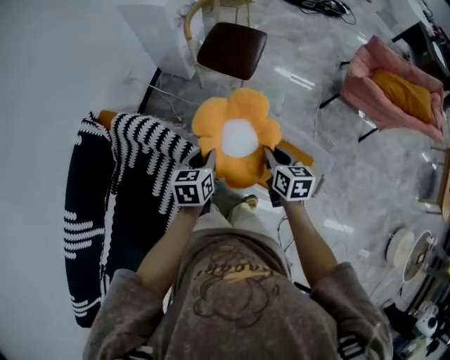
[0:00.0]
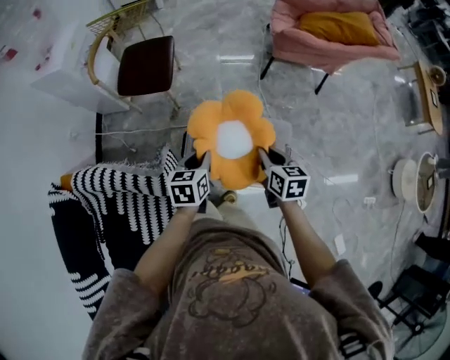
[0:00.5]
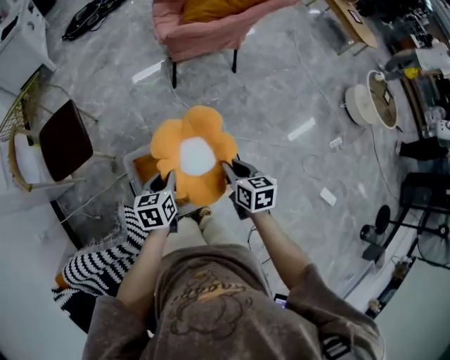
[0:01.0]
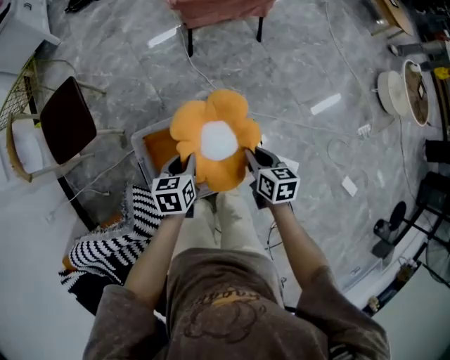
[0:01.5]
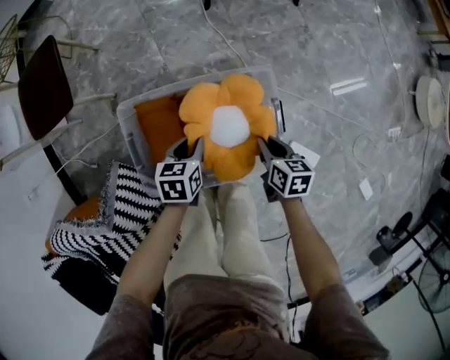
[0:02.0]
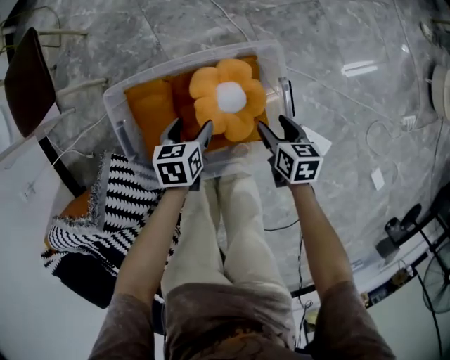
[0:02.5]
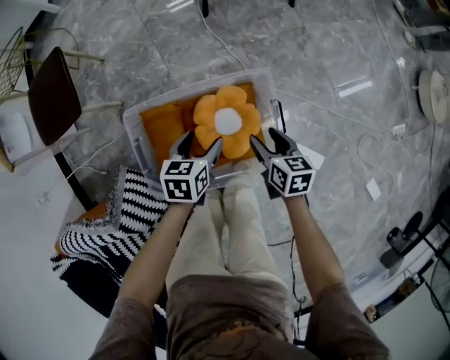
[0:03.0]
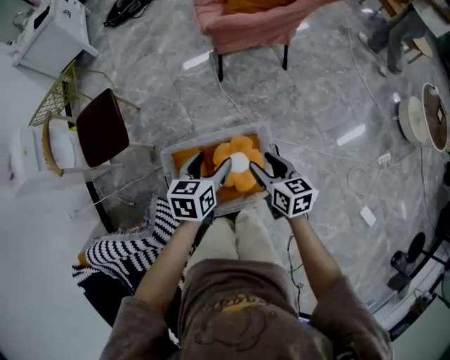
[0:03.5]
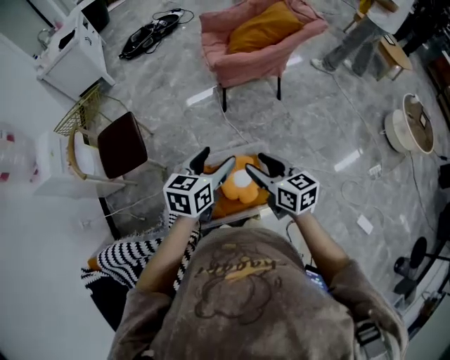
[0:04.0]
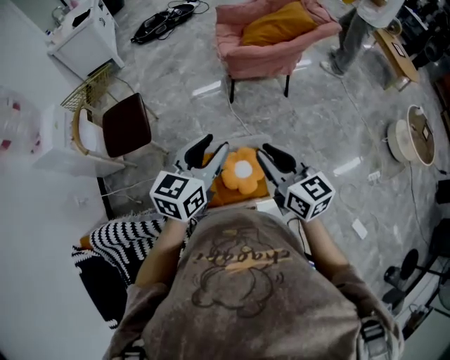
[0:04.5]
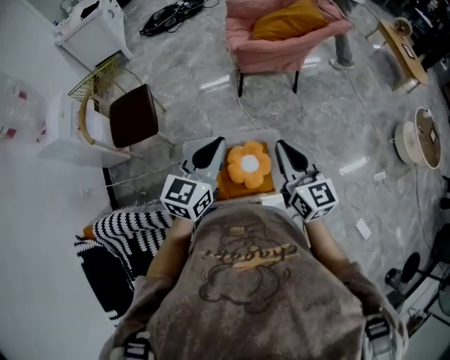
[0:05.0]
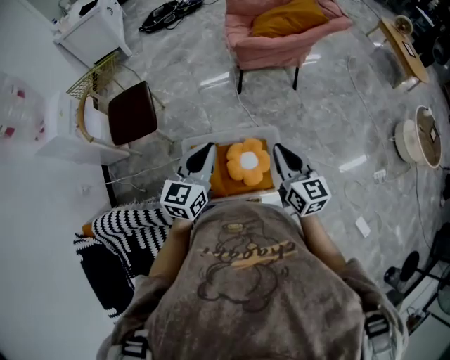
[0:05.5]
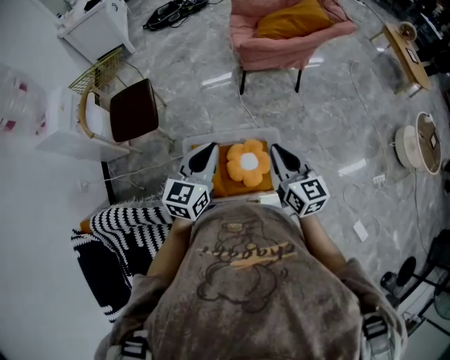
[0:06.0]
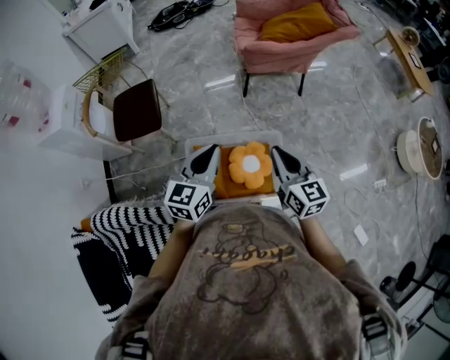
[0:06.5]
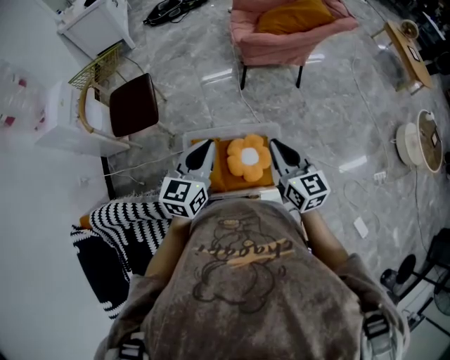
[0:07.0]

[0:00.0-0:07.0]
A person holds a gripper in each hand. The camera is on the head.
0:00.0 to 0:02.0: The two grippers travel together, about 50 cm. The left gripper swivels roughly 50 degrees. The right gripper turns by about 40 degrees.
0:02.0 to 0:03.5: Both grippers travel together upward, some 30 cm. The right gripper rotates some 20 degrees, and opens up, while the left gripper opens its fingers.
0:03.5 to 0:05.0: The right gripper shifts approximately 30 cm upward, rotates roughly 30 degrees, and closes. The left gripper travels upward and backward by approximately 30 cm, changes its angle by about 30 degrees, and closes up.
0:05.0 to 0:07.0: The grippers both shift downward by some 5 cm.

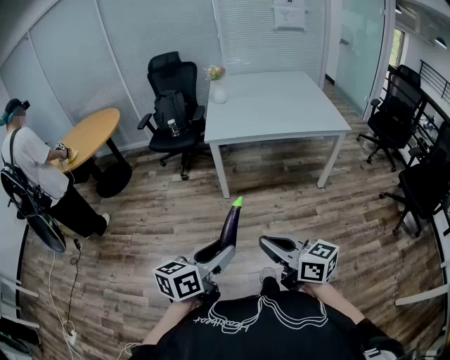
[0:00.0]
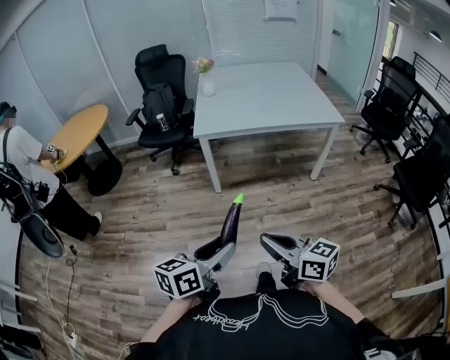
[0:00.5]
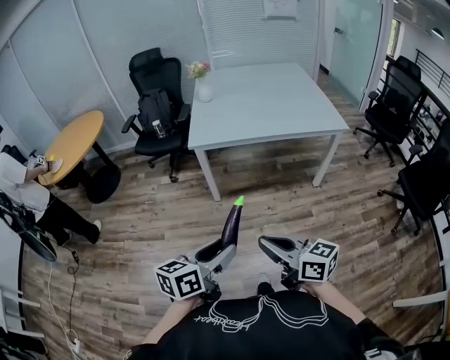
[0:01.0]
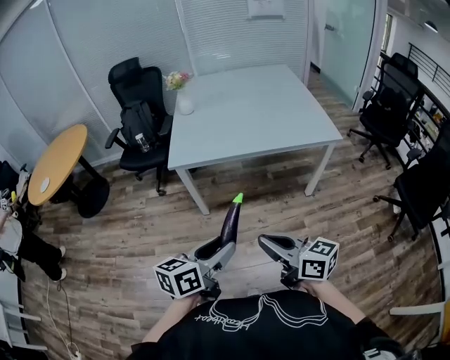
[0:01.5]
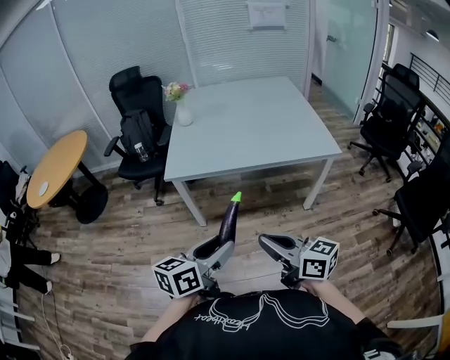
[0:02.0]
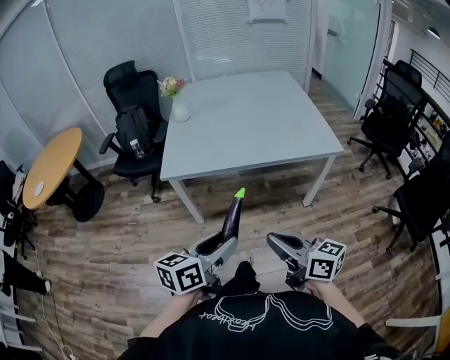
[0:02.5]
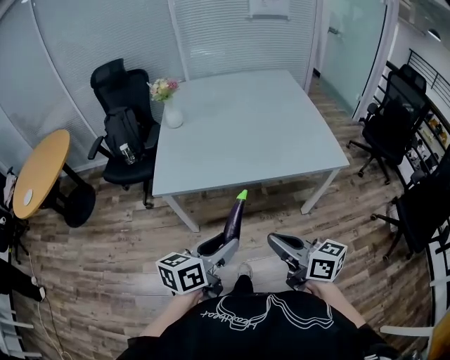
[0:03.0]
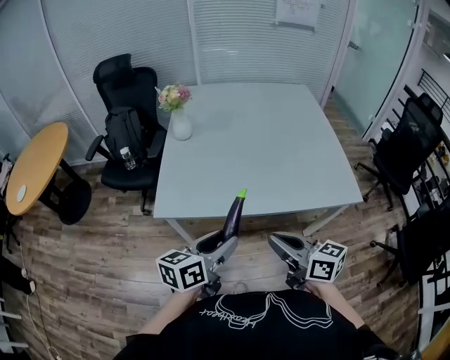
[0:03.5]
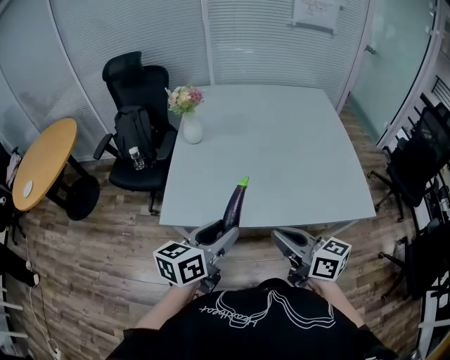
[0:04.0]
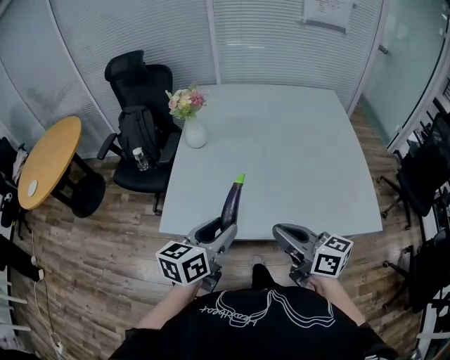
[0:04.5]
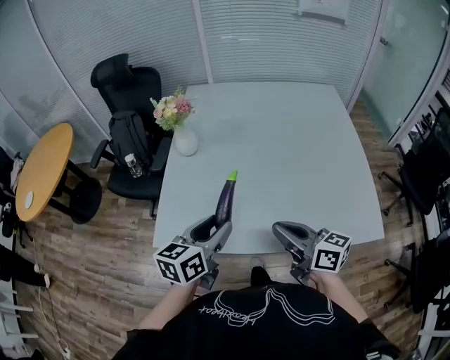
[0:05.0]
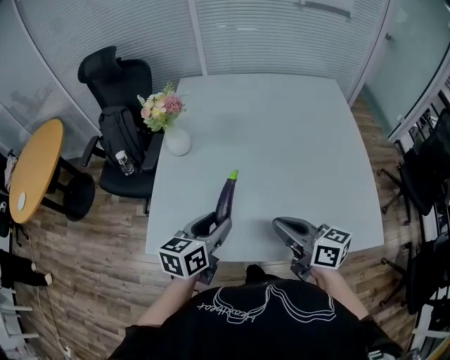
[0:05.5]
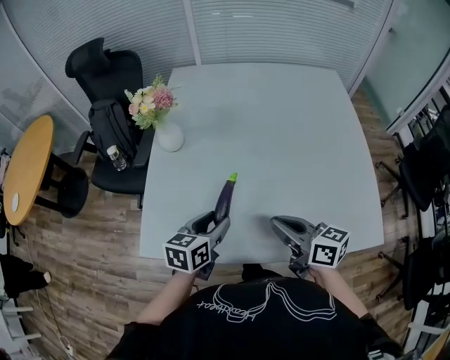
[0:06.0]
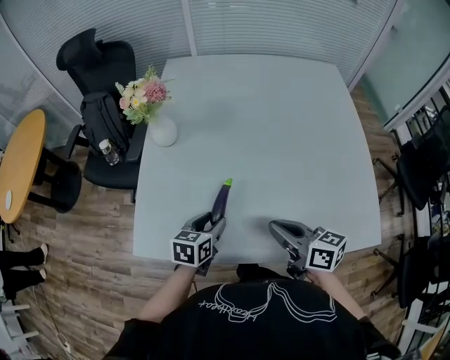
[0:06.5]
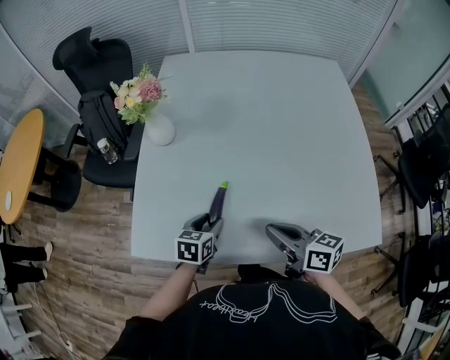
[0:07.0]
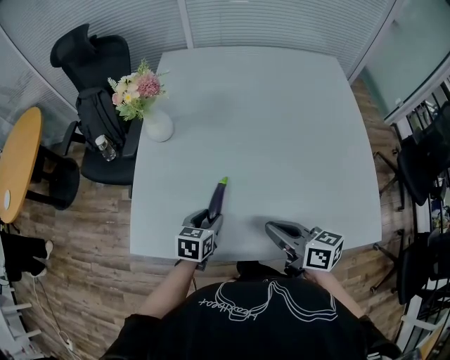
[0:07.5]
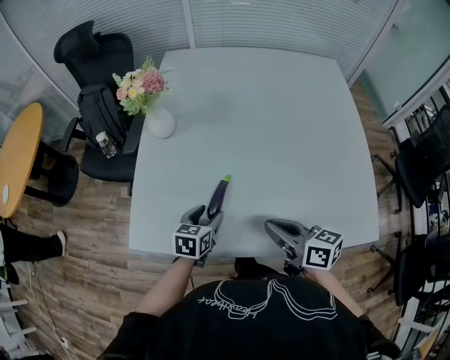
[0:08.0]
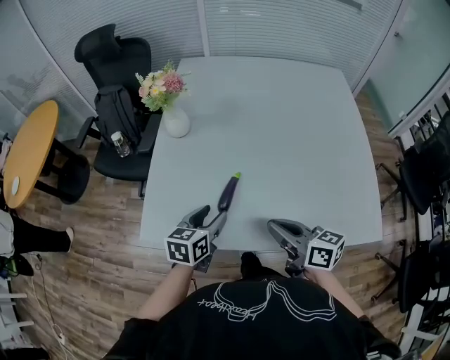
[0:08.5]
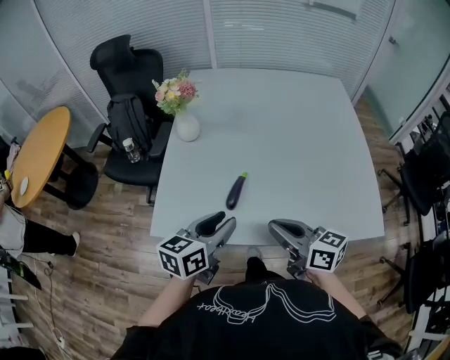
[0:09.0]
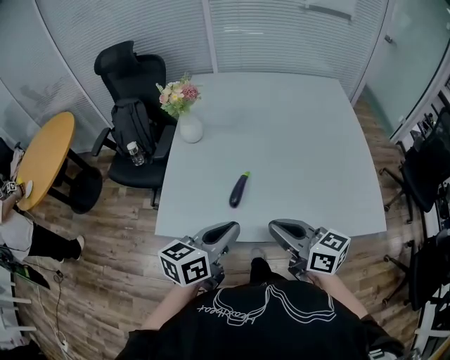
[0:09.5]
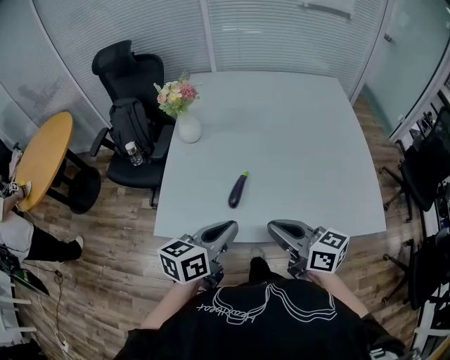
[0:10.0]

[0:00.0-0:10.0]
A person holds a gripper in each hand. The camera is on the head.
0:00.0 to 0:02.0: Both grippers move forward and to the right, about 30 cm.
0:02.0 to 0:04.0: The grippers both shift forward by roughly 35 cm.
0:04.0 to 0:06.0: The right gripper moves forward, approximately 20 cm; the left gripper shifts roughly 25 cm forward and downward.
0:06.0 to 0:08.0: The left gripper heads downward, covering some 10 cm.
0:08.0 to 0:10.0: The right gripper heads backward, upward and to the left, covering approximately 15 cm. The left gripper goes some 25 cm upward and backward, rotates some 30 degrees, and closes up.

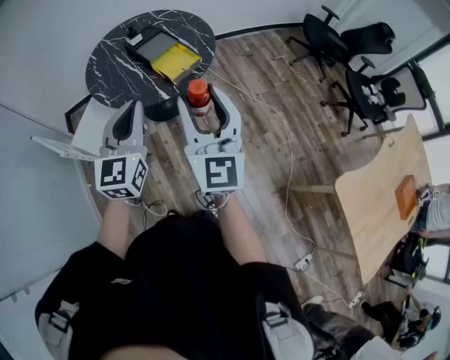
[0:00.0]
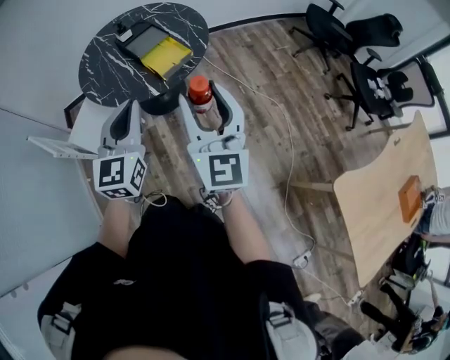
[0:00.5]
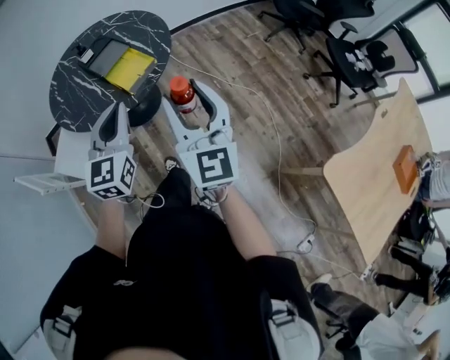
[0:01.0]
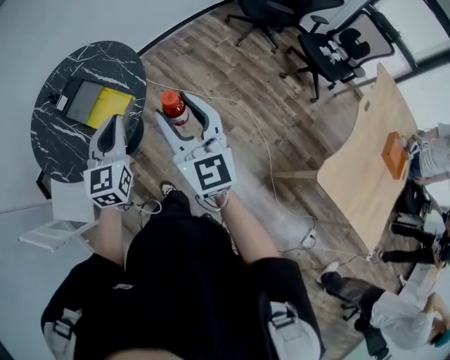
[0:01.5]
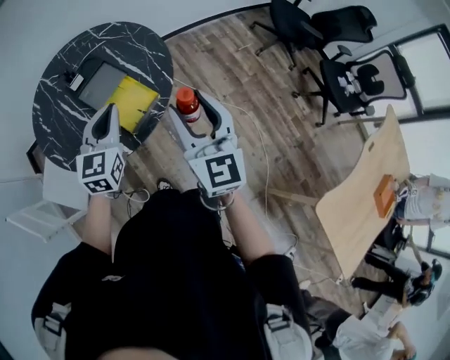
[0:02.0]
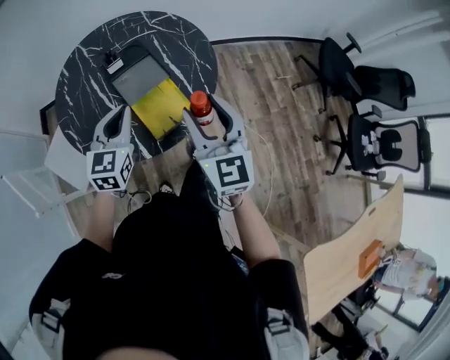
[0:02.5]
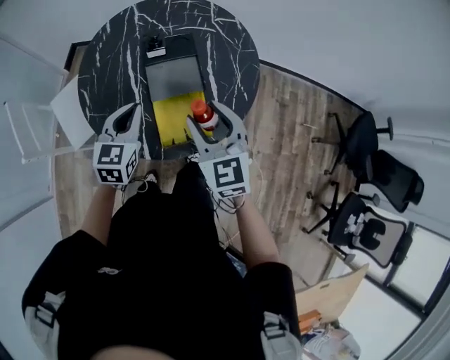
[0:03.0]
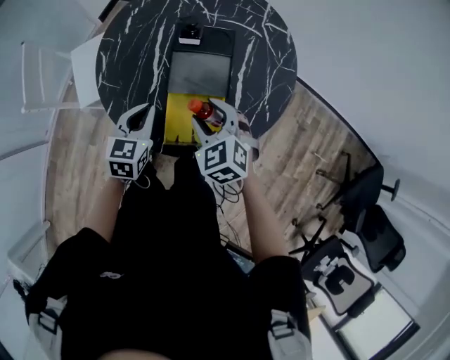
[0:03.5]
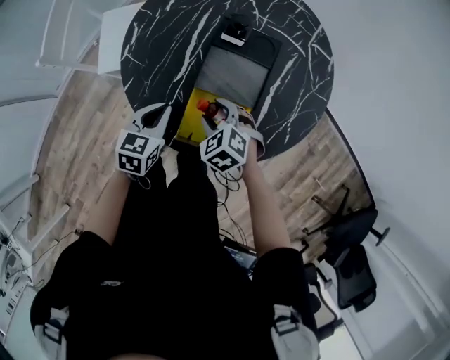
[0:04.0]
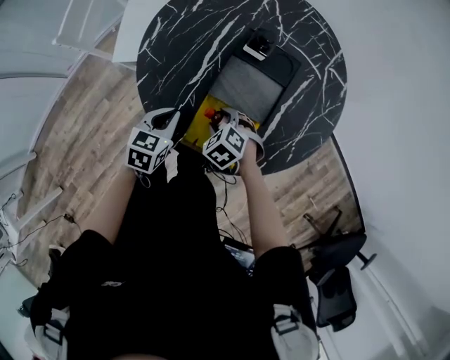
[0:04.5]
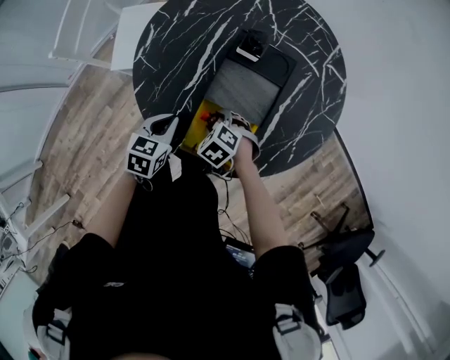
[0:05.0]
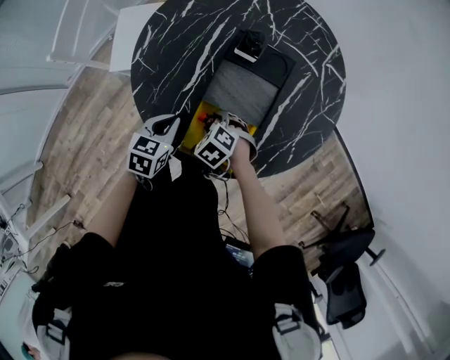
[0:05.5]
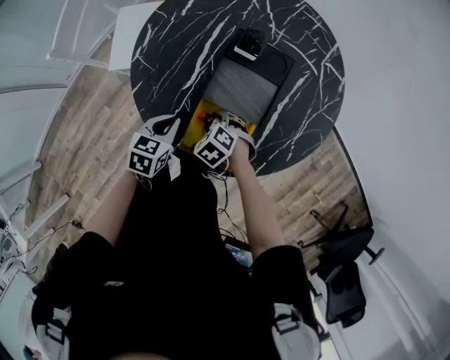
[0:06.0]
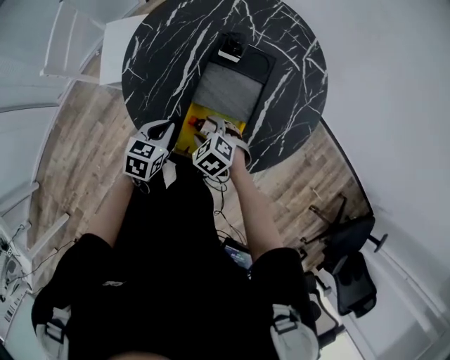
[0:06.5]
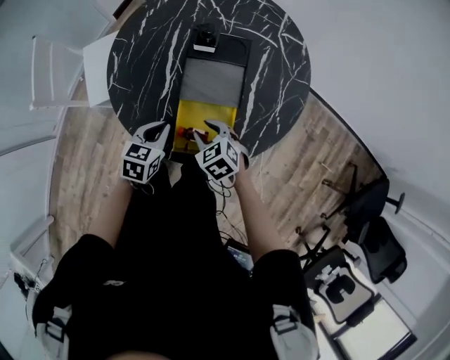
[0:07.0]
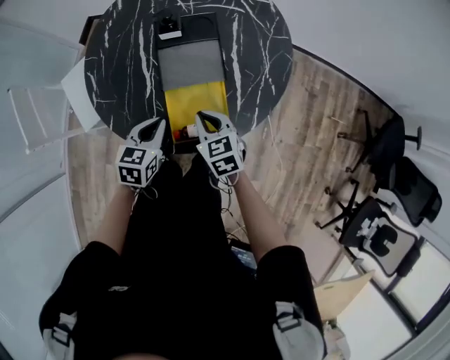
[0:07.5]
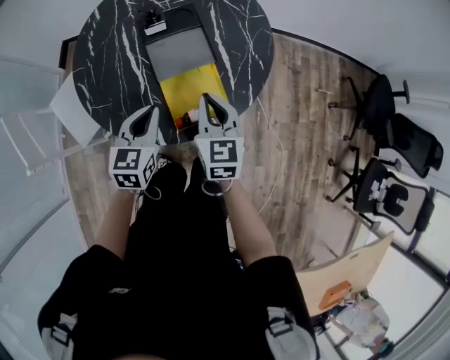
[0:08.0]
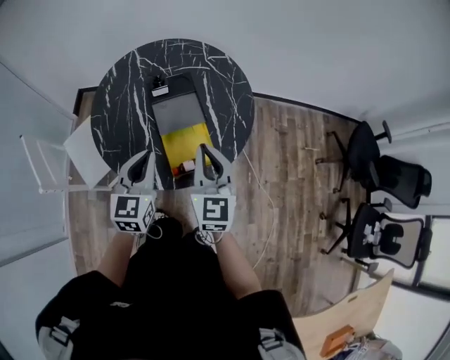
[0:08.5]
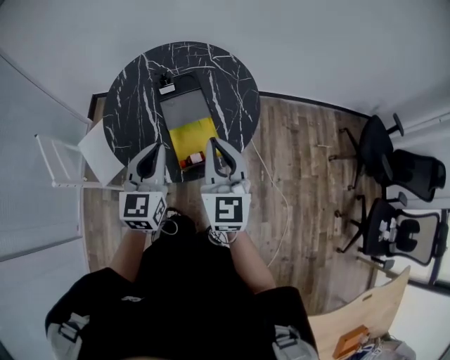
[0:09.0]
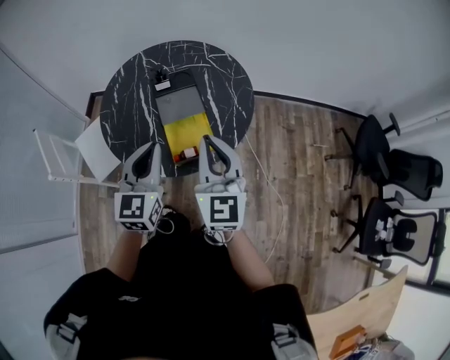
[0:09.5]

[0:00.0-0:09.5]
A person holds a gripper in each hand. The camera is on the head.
0:00.0 to 0:02.0: Both grippers travel together forward, approximately 30 cm.
0:02.0 to 0:04.0: The grippers both shift downward by about 30 cm. The left gripper rotates approximately 60 degrees. The right gripper points its fingers some 60 degrees further downward.
0:04.0 to 0:05.5: The right gripper travels downward by approximately 10 cm.
0:05.5 to 0:07.5: The left gripper moves about 5 cm, and rotates approximately 20 degrees. The right gripper is displaced upward by approximately 10 cm, angles its fingers upward, by approximately 30 degrees, and closes its fingers.
0:07.5 to 0:09.5: Both grippers travel together upward, approximately 30 cm. The left gripper angles its fingers upward, by approximately 30 degrees; the right gripper tilts its fingers some 40 degrees upward.
